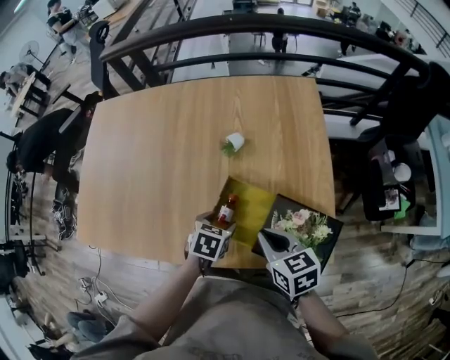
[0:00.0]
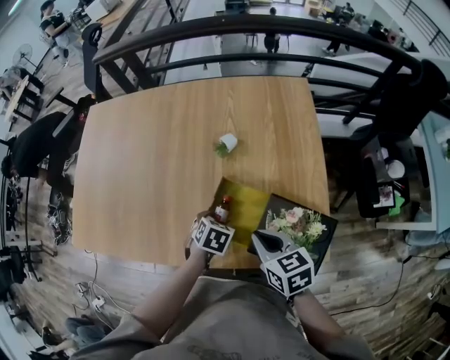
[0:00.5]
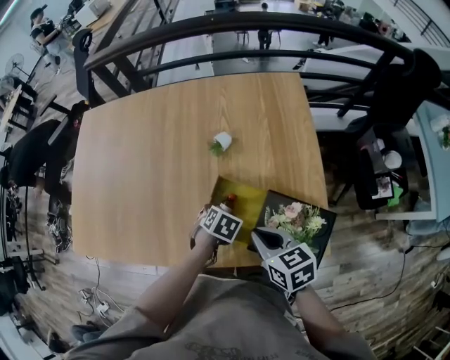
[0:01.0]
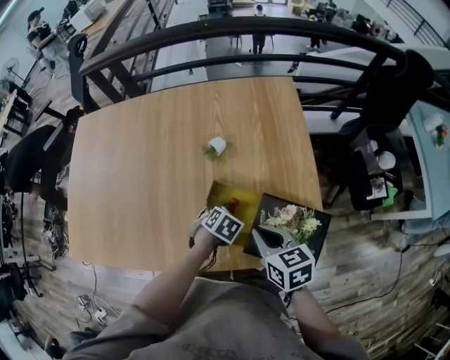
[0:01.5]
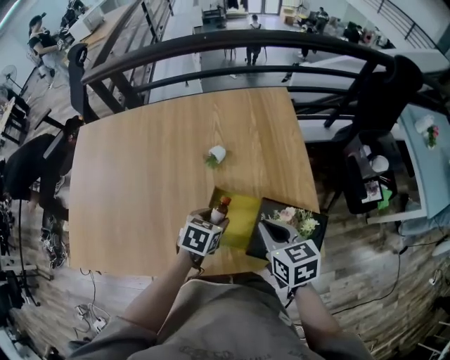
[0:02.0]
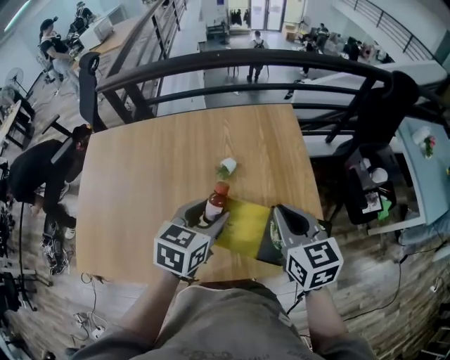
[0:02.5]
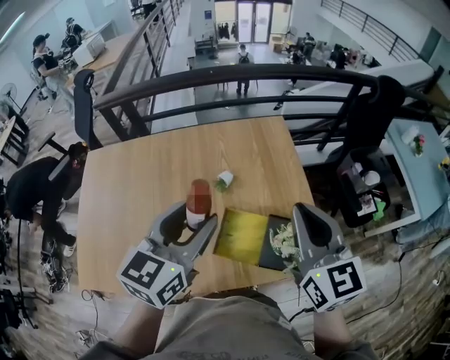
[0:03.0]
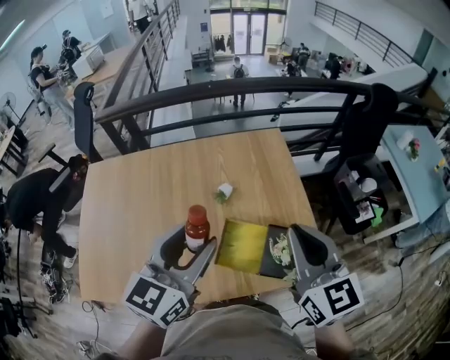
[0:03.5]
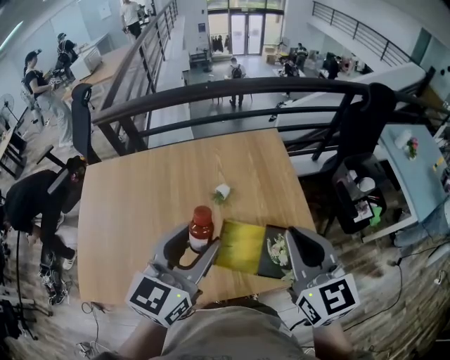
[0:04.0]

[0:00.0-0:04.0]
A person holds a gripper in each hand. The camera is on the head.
0:00.0 to 0:02.0: The right gripper moves approximately 5 cm. The left gripper goes downward and returns, approximately 5 cm each way.
0:02.0 to 0:04.0: Both grippers move upward, approximately 30 cm. The left gripper points its fingers about 50 degrees further upward; the right gripper turns by about 30 degrees.

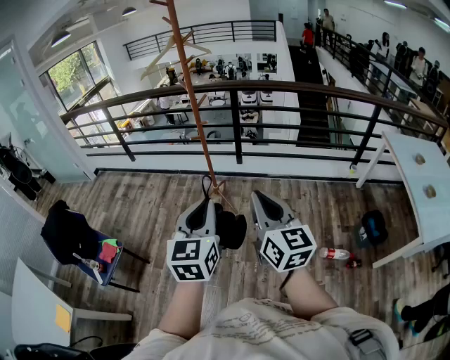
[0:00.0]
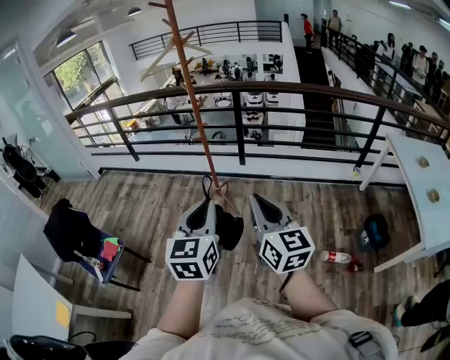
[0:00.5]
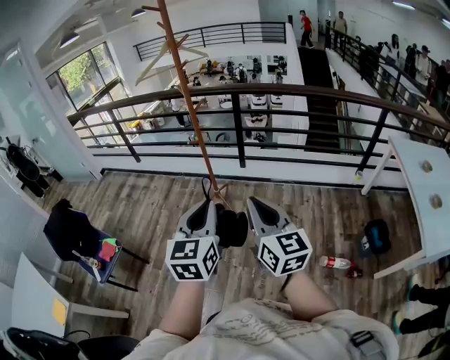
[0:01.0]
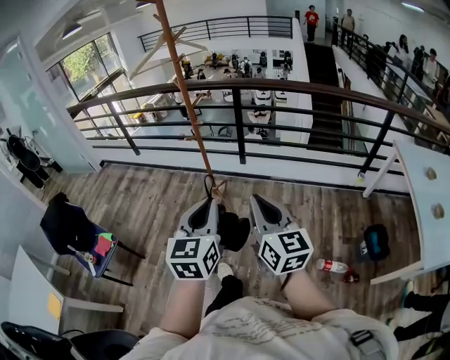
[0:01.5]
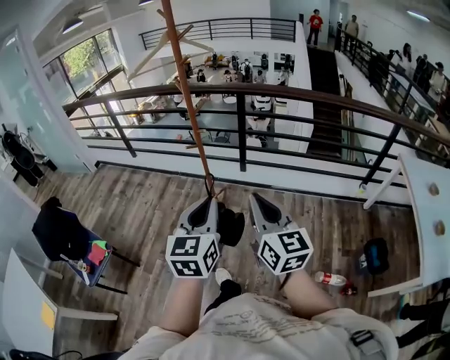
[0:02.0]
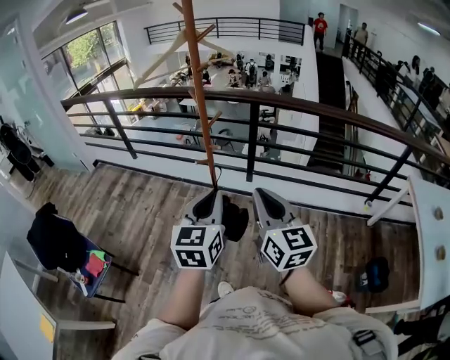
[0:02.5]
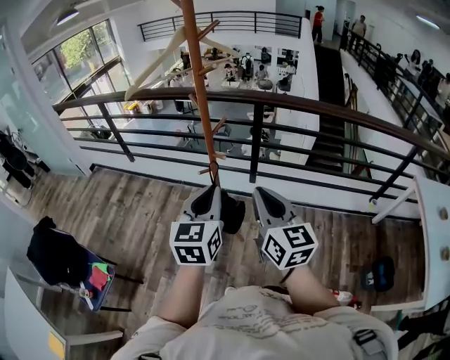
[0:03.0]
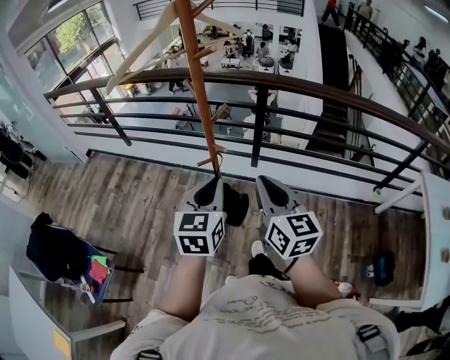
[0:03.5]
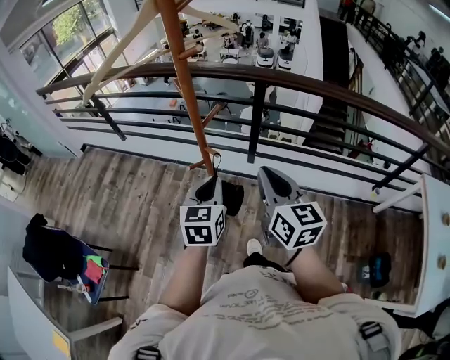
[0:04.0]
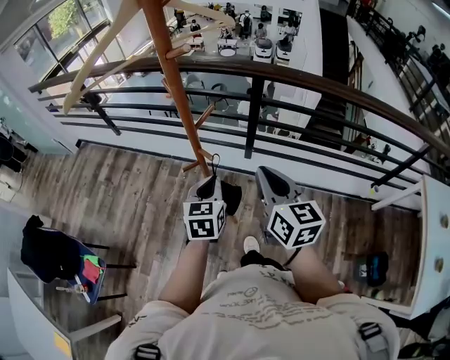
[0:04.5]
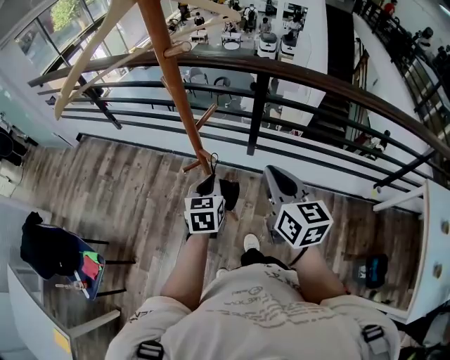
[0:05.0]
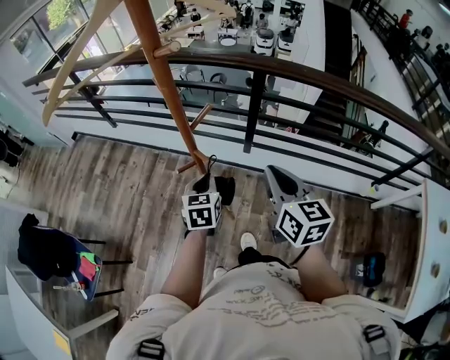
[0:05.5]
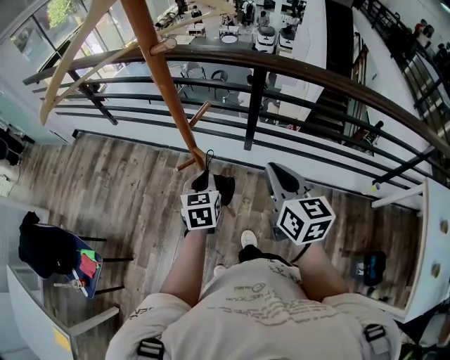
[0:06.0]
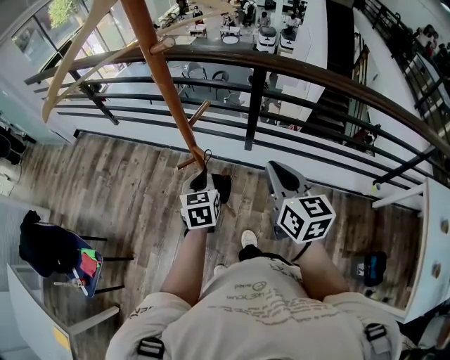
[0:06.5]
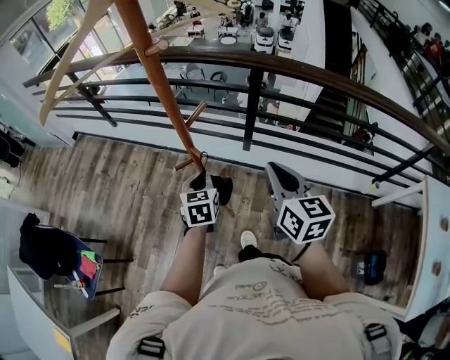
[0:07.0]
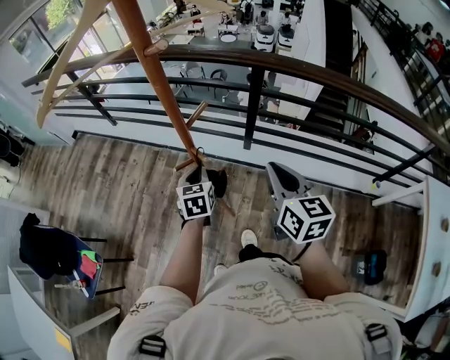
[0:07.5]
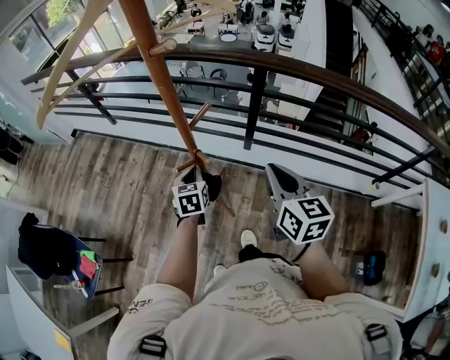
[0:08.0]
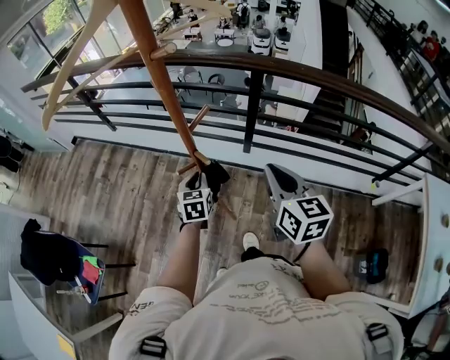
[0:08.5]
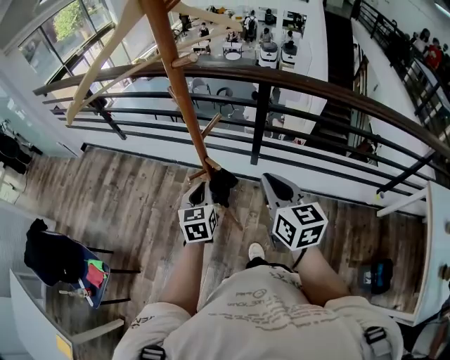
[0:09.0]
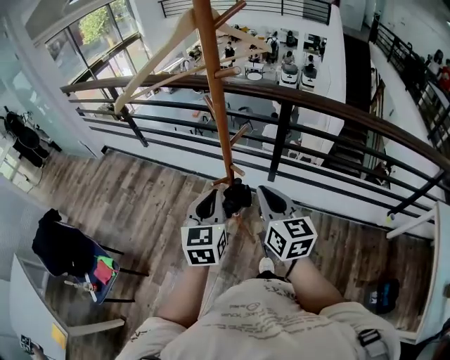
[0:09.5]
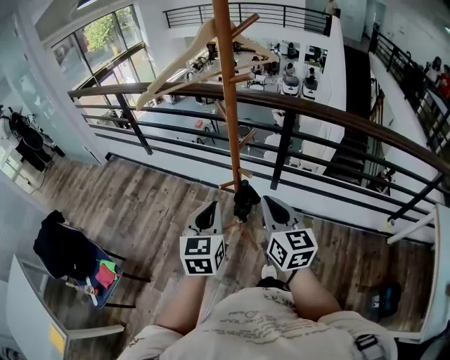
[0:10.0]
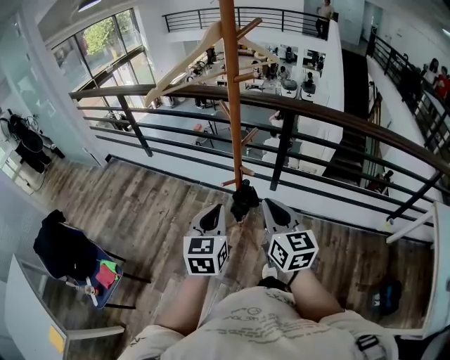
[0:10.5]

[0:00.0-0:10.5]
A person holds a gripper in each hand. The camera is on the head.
0:00.0 to 0:02.0: Both grippers travel together forward and to the right, some 20 cm.
0:02.0 to 0:04.0: The pair of grippers is taken forward, some 40 cm.
0:04.0 to 0:06.5: The right gripper is displaced forward, to the right and downward by about 10 cm. Meanwhile the left gripper is displaced downward and forward by some 15 cm.
0:06.5 to 0:08.5: The left gripper is displaced downward by approximately 5 cm.
0:08.5 to 0:10.5: The right gripper goes roughly 20 cm to the left and backward, while the left gripper heads backward, upward and to the left, covering some 30 cm.

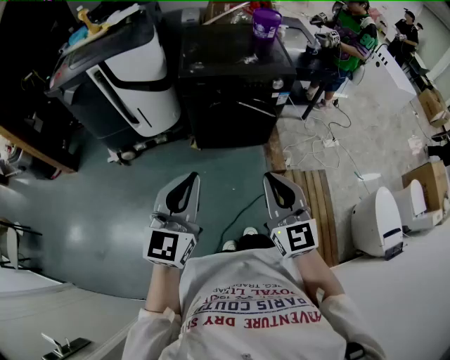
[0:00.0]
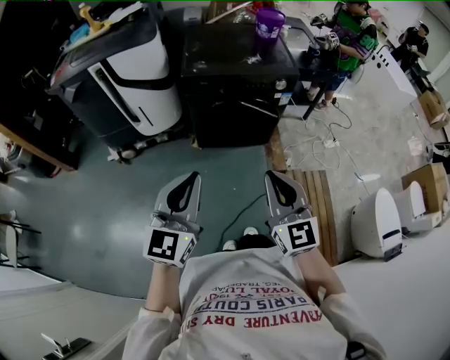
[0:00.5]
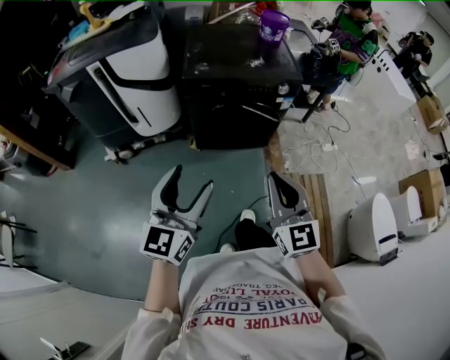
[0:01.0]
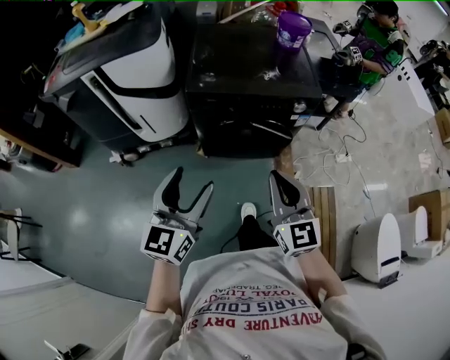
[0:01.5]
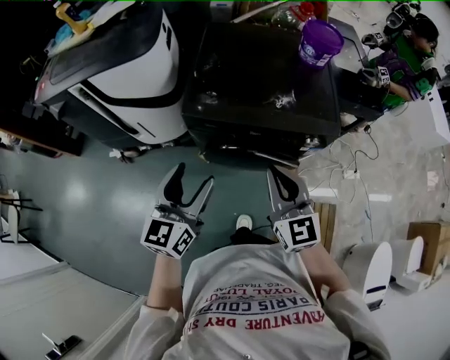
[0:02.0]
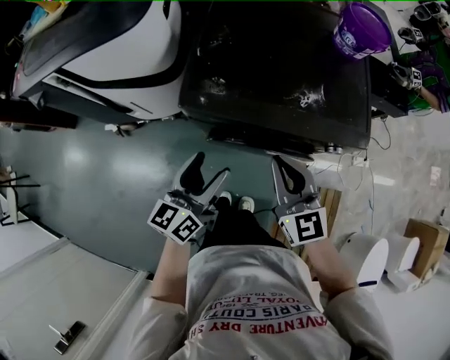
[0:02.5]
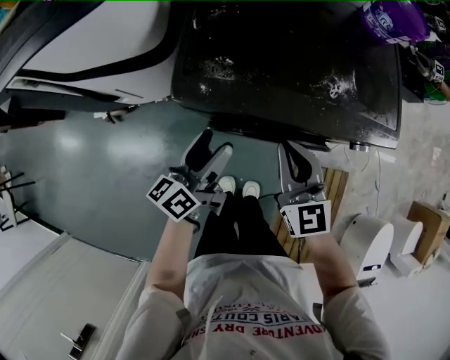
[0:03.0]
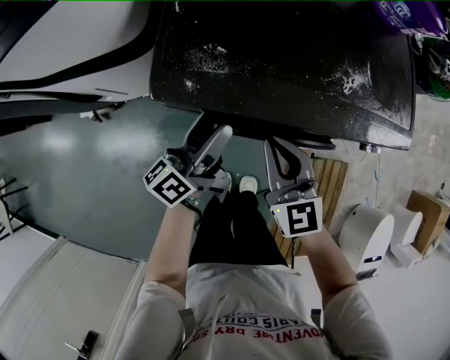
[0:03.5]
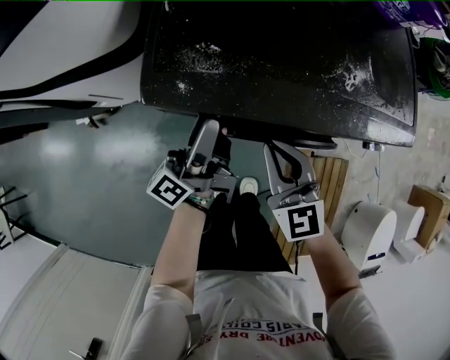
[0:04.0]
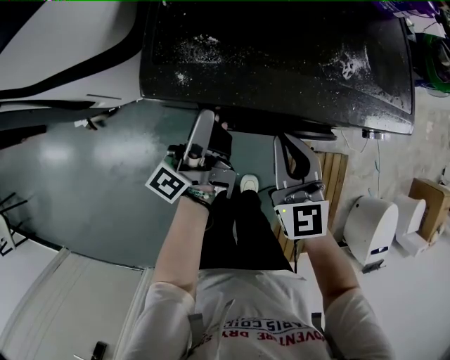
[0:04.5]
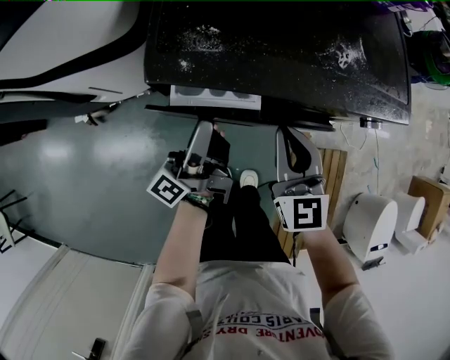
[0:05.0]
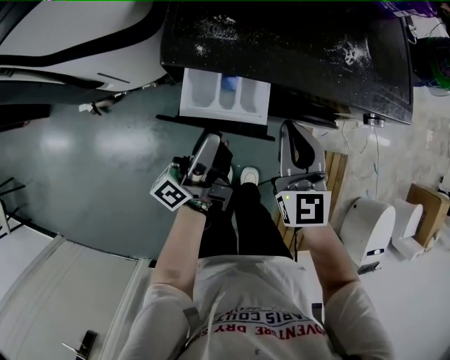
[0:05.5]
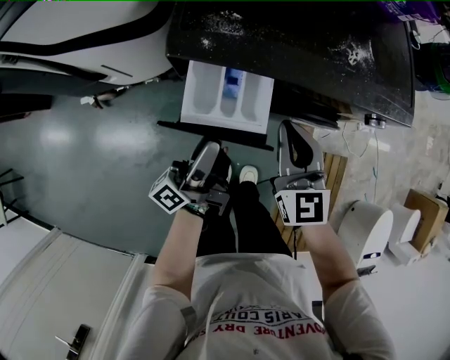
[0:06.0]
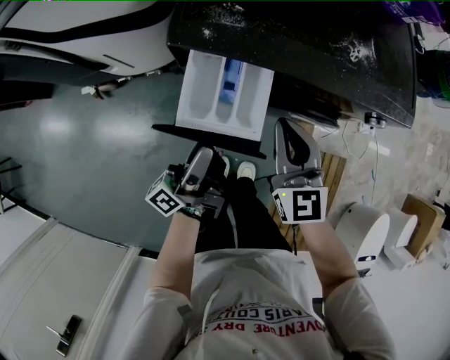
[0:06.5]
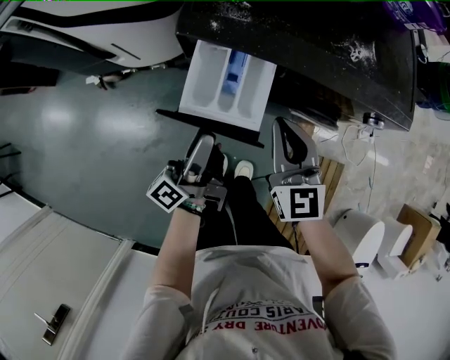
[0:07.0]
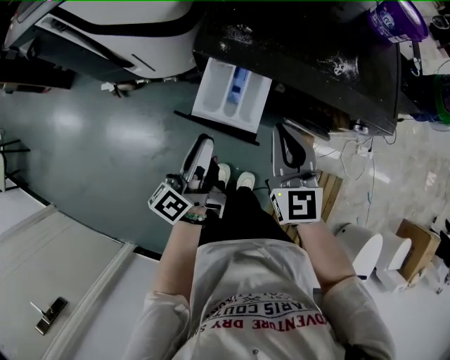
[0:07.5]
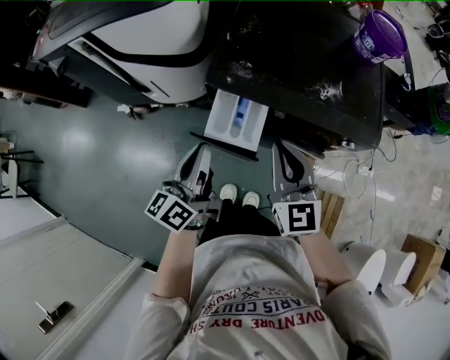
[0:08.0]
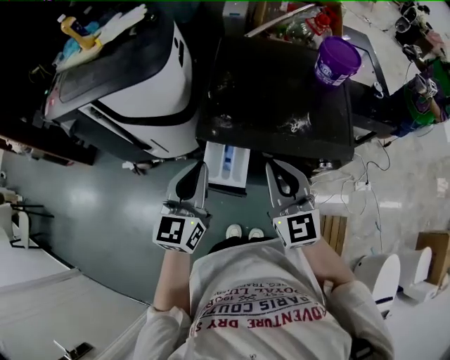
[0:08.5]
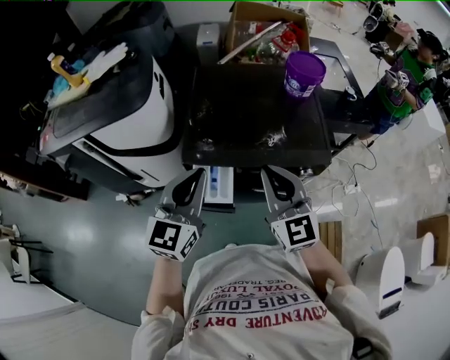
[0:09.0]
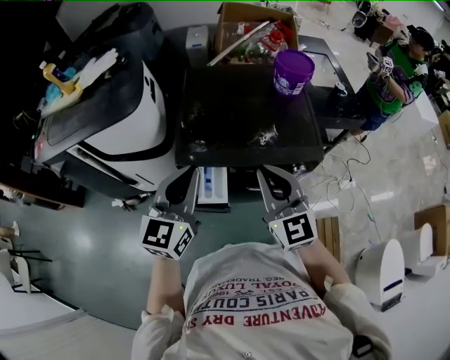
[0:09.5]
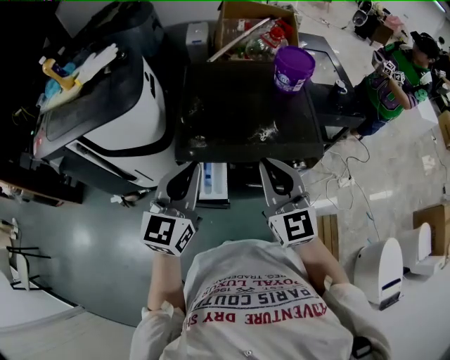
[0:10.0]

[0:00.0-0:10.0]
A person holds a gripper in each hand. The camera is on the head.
0:00.0 to 0:02.0: The two grippers go approximately 40 cm forward. The left gripper opens.
0:02.0 to 0:04.0: The grippers both shift downward and forward by roughly 30 cm. The left gripper twists roughly 60 degrees counterclockwise, seen from behind.
0:04.0 to 0:06.0: The left gripper heads backward, covering about 10 cm.
0:06.0 to 0:08.0: The two grippers go some 15 cm upward. The left gripper changes its angle by some 40 degrees, and closes up.
0:08.0 to 0:10.0: The right gripper goes some 15 cm upward. The left gripper is displaced upward and to the right by roughly 20 cm, and rotates around the line of its fingers by some 40 degrees, clockwise from behind.

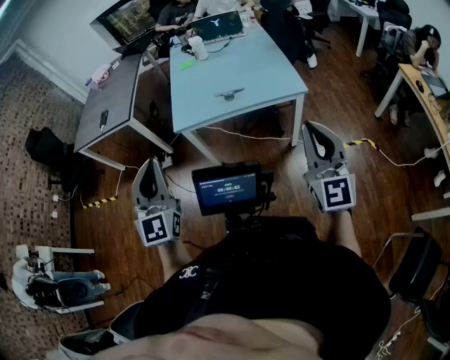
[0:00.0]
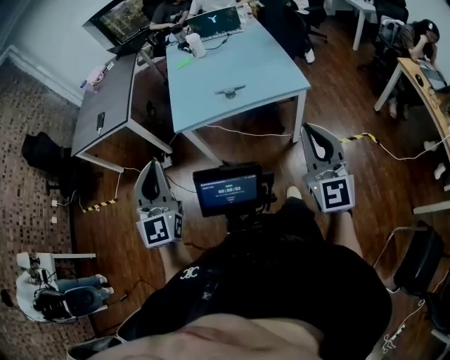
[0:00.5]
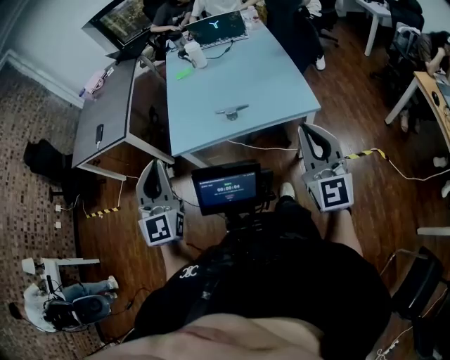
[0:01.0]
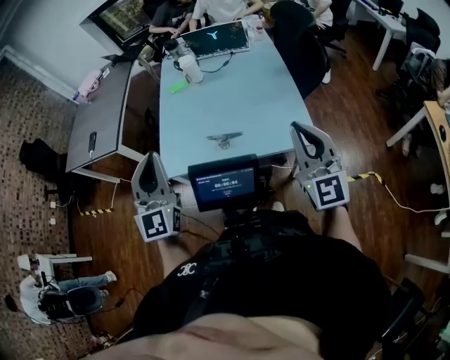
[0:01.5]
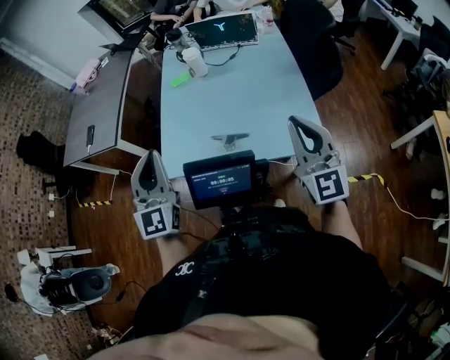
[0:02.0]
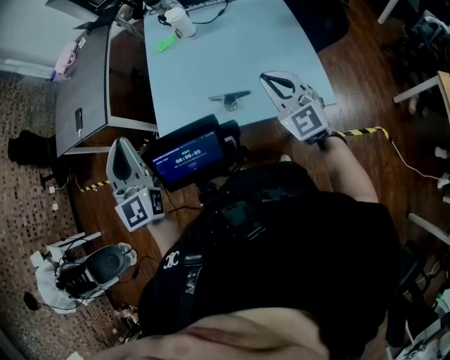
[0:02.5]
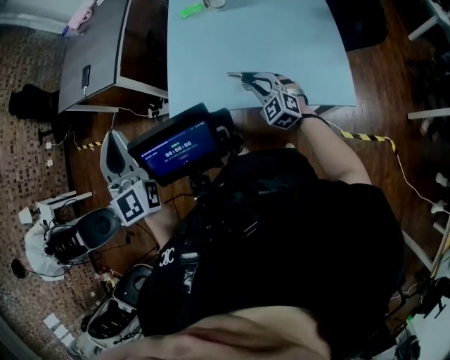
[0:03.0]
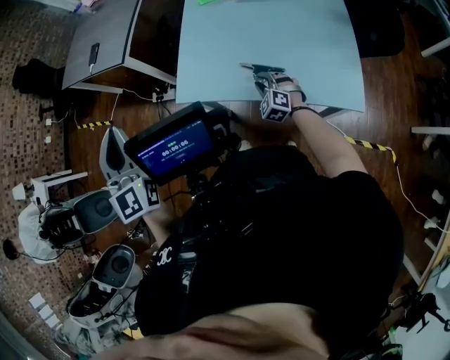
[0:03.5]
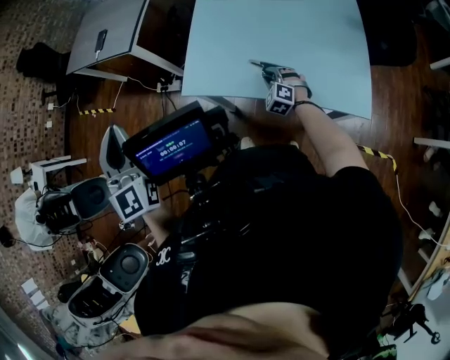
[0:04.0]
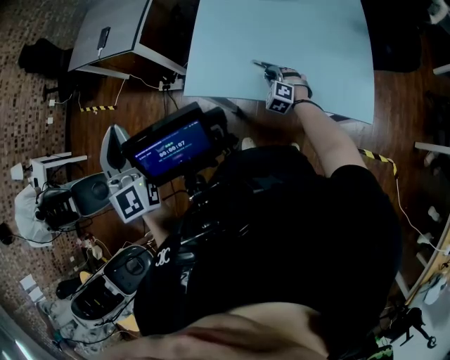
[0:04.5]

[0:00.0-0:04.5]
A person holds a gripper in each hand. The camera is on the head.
0:00.0 to 0:02.0: Both grippers are carried forward, approximately 40 cm.
0:02.0 to 0:04.5: The right gripper heads downward, forward and to the left, covering about 50 cm, and angles its fingers downward, by some 50 degrees. Meanwhile the left gripper is displaced to the left by approximately 20 cm, and swivels some 20 degrees.
